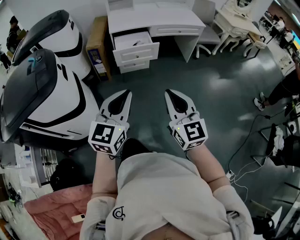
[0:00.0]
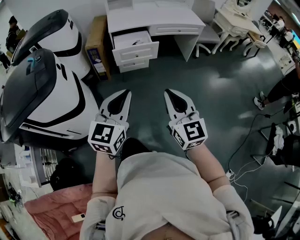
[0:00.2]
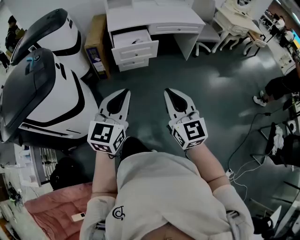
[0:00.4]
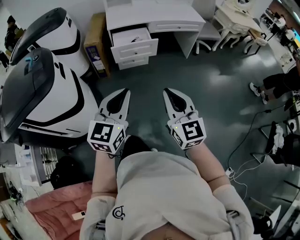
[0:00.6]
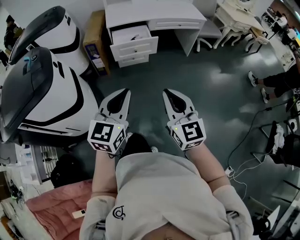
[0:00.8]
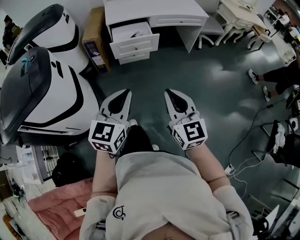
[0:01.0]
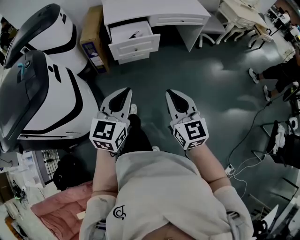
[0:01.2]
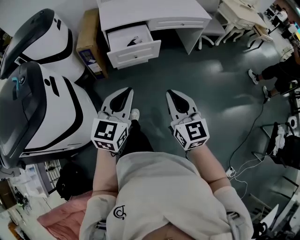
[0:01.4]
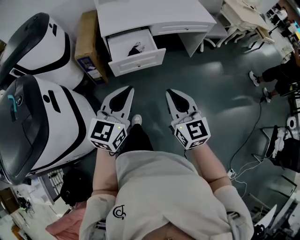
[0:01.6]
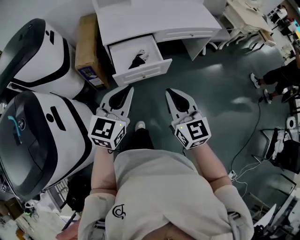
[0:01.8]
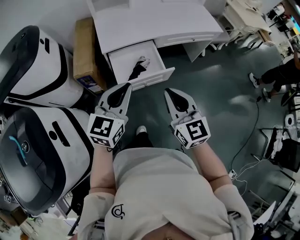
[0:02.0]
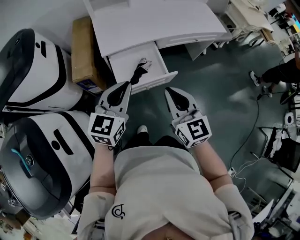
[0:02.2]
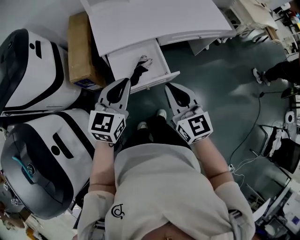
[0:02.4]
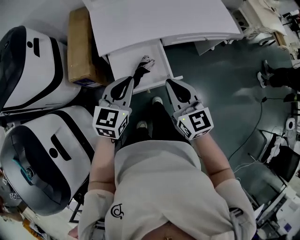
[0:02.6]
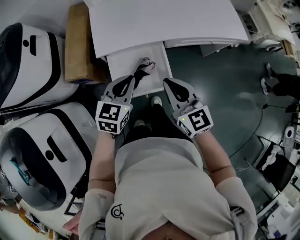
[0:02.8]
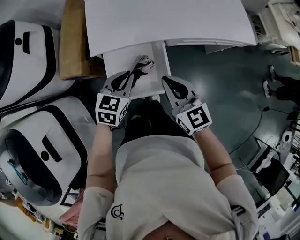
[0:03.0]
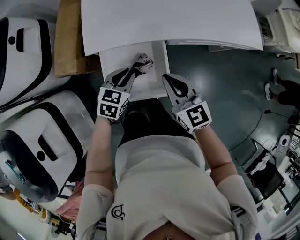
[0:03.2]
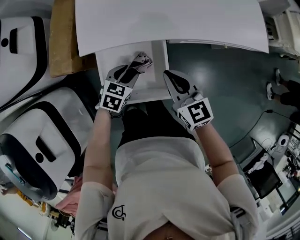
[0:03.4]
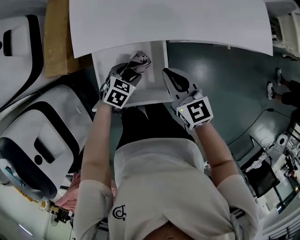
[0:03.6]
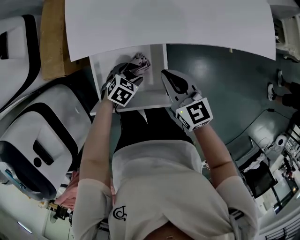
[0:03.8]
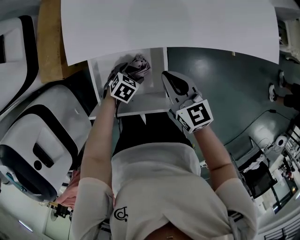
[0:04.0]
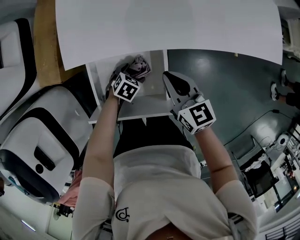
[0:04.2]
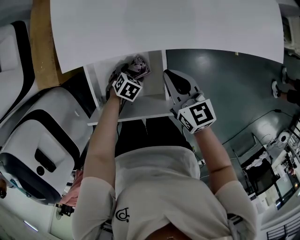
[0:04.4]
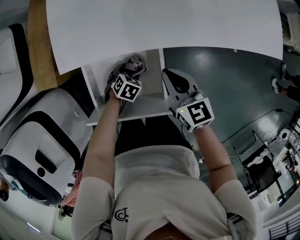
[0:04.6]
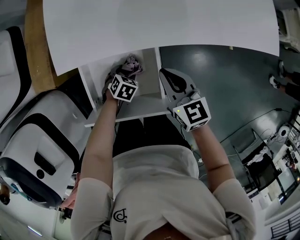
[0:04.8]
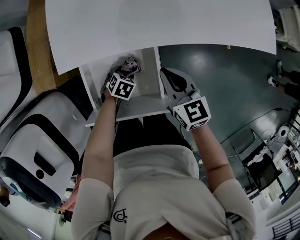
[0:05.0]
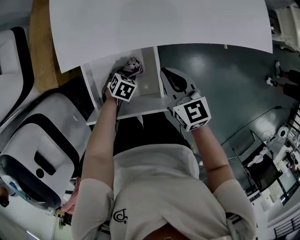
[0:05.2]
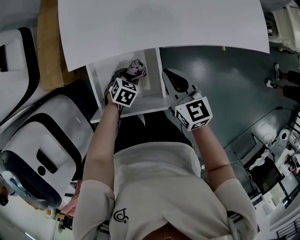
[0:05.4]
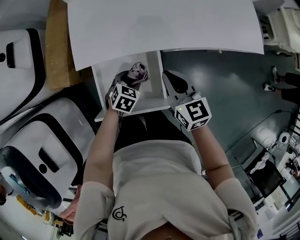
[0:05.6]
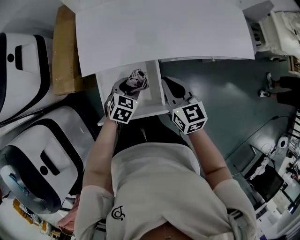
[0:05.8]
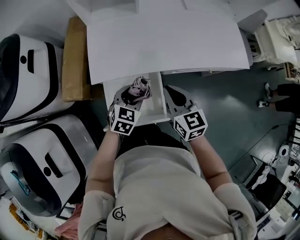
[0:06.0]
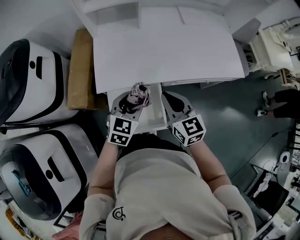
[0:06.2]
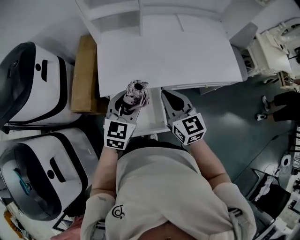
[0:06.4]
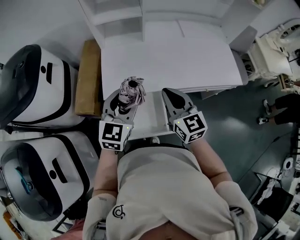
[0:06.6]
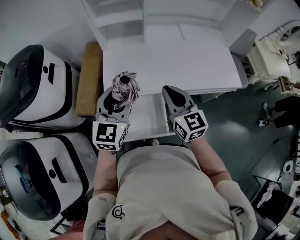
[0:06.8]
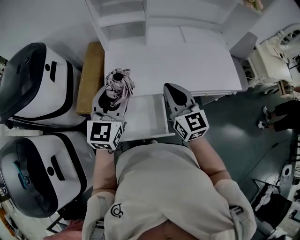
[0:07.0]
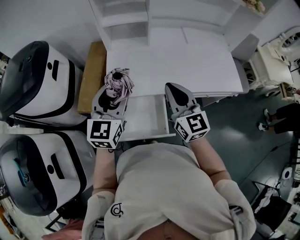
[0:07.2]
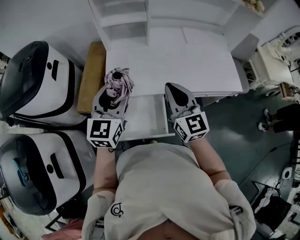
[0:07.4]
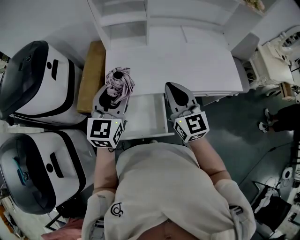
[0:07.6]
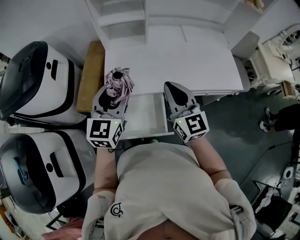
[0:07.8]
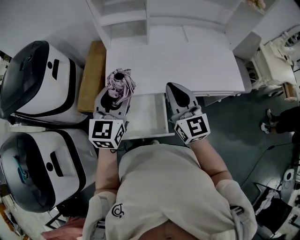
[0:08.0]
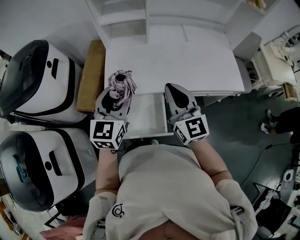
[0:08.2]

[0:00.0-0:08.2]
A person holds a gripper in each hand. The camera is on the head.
0:00.0 to 0:01.6: Both grippers move forward, roughly 25 cm.
0:01.6 to 0:03.2: Both grippers are carried forward, approximately 40 cm. The right gripper turns by roughly 20 degrees; the left gripper moves downward, roughly 25 cm, and points its fingers approximately 40 degrees further downward.
0:03.2 to 0:05.0: The left gripper heads downward, covering about 20 cm, tilts its fingers approximately 30 degrees downward, and opens, then closes again; the right gripper moves downward, about 10 cm.
0:05.0 to 0:06.6: The right gripper travels upward by about 25 cm, and swivels approximately 20 degrees; the left gripper goes about 50 cm upward, and tilts its fingers about 60 degrees upward.
0:06.6 to 0:08.2: The right gripper goes roughly 5 cm upward.

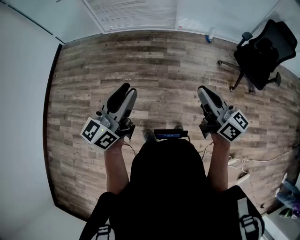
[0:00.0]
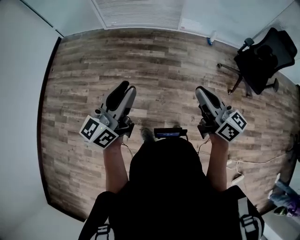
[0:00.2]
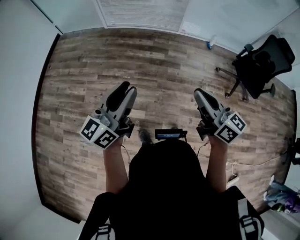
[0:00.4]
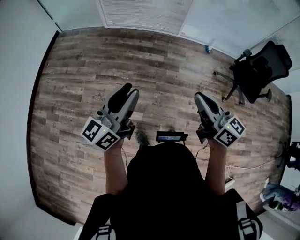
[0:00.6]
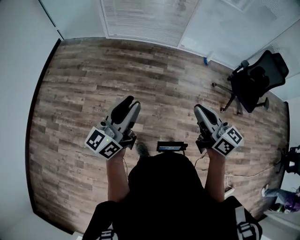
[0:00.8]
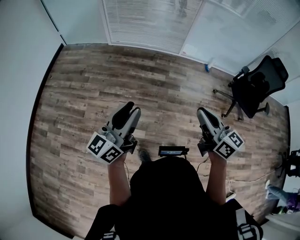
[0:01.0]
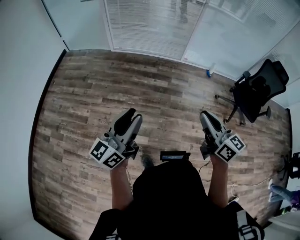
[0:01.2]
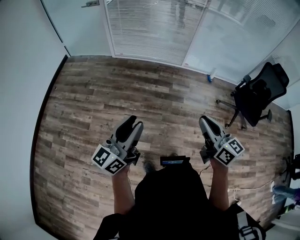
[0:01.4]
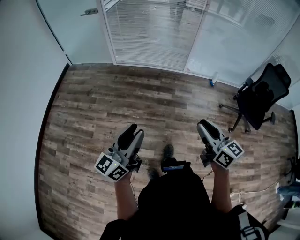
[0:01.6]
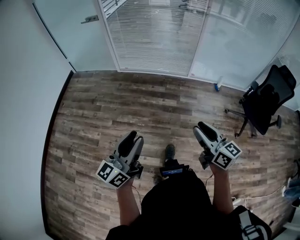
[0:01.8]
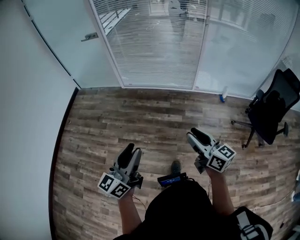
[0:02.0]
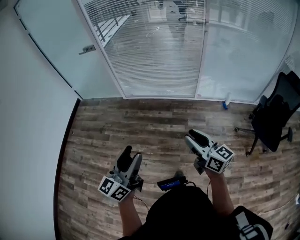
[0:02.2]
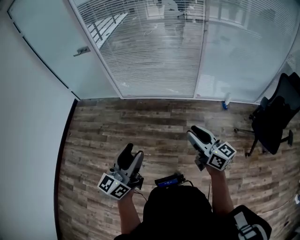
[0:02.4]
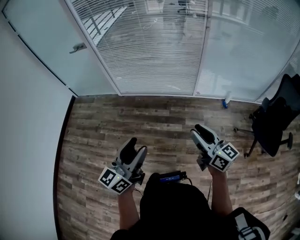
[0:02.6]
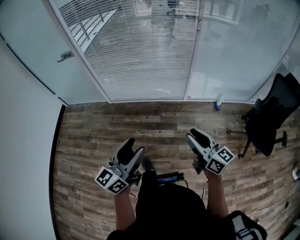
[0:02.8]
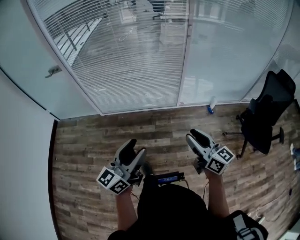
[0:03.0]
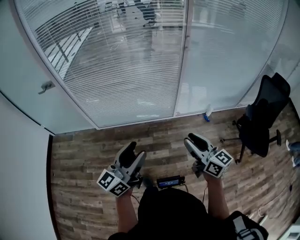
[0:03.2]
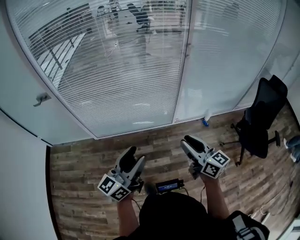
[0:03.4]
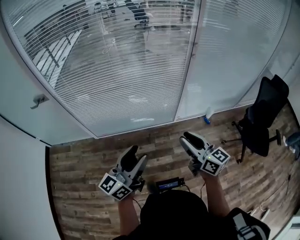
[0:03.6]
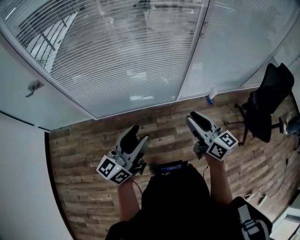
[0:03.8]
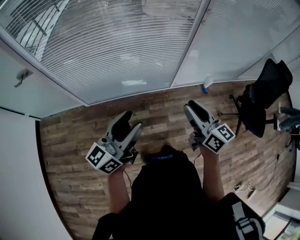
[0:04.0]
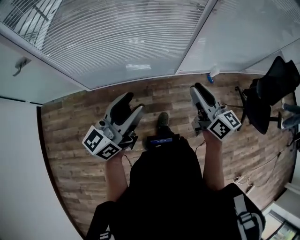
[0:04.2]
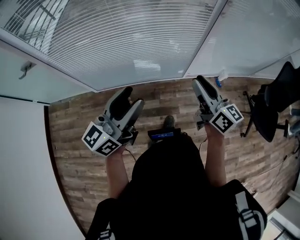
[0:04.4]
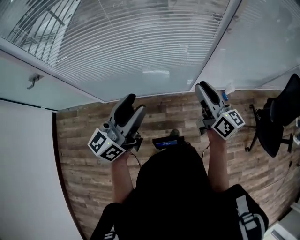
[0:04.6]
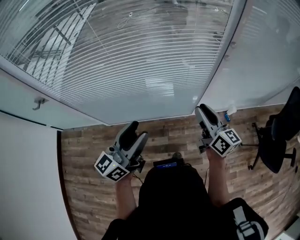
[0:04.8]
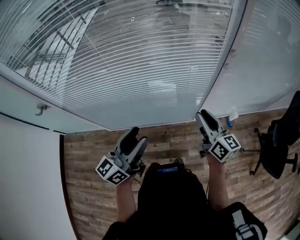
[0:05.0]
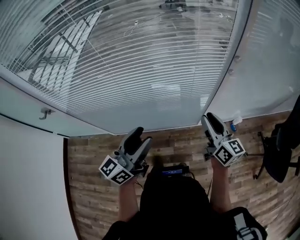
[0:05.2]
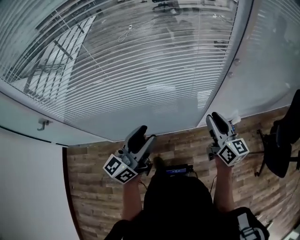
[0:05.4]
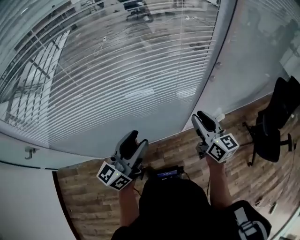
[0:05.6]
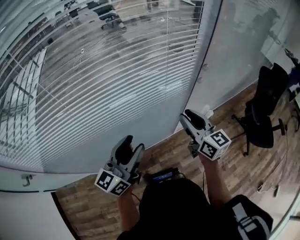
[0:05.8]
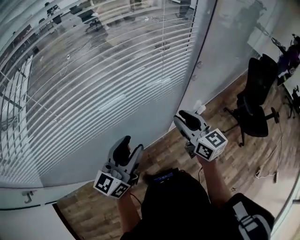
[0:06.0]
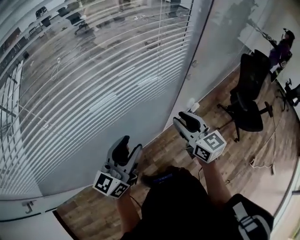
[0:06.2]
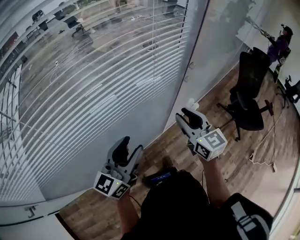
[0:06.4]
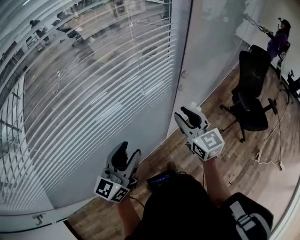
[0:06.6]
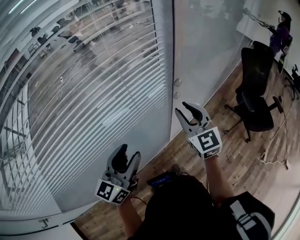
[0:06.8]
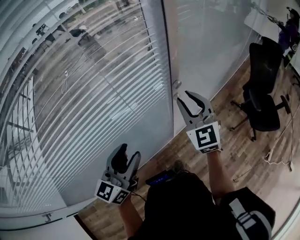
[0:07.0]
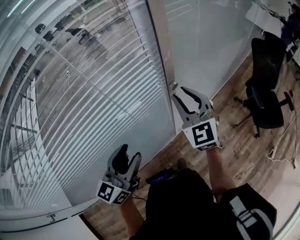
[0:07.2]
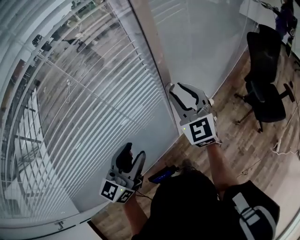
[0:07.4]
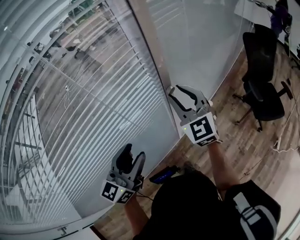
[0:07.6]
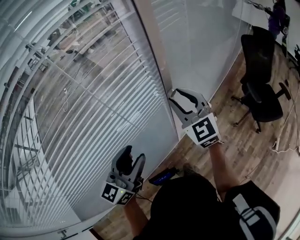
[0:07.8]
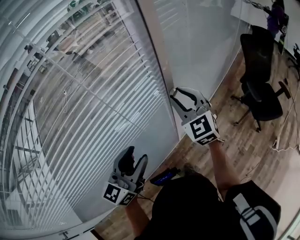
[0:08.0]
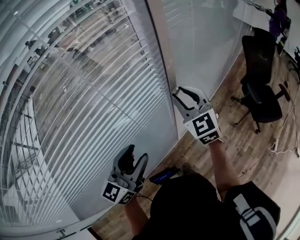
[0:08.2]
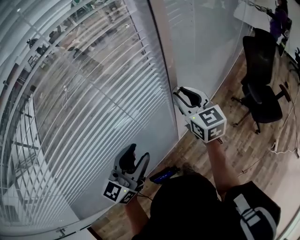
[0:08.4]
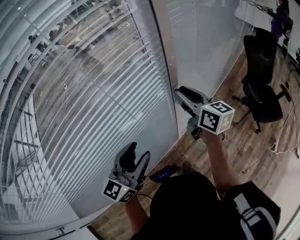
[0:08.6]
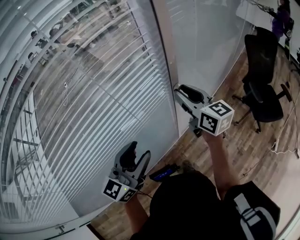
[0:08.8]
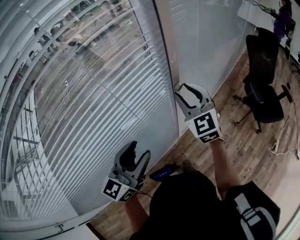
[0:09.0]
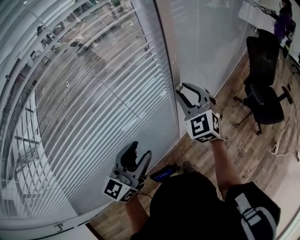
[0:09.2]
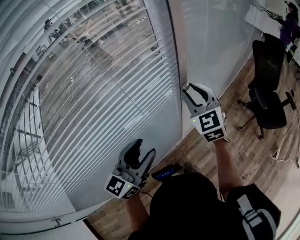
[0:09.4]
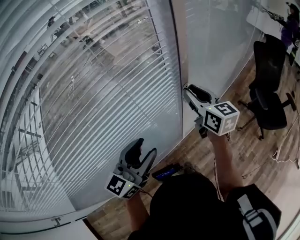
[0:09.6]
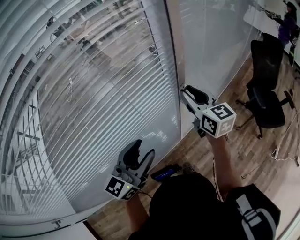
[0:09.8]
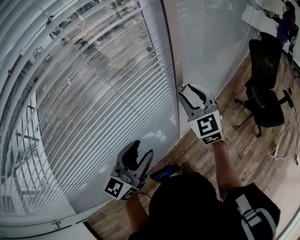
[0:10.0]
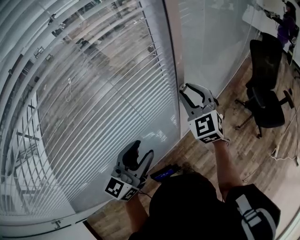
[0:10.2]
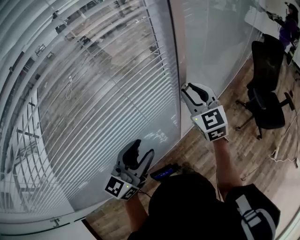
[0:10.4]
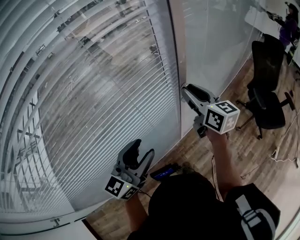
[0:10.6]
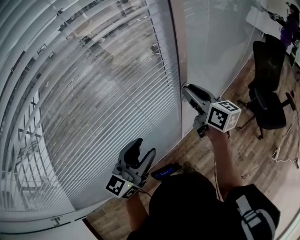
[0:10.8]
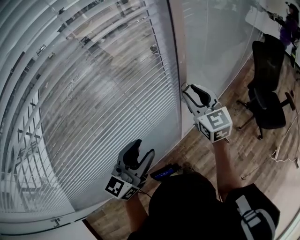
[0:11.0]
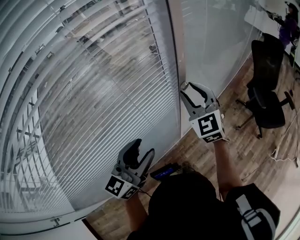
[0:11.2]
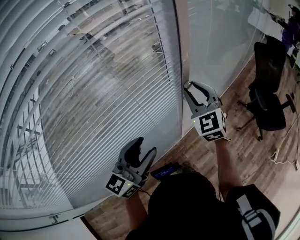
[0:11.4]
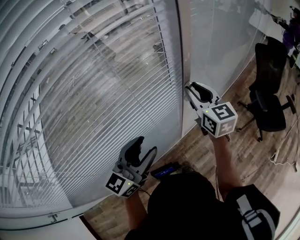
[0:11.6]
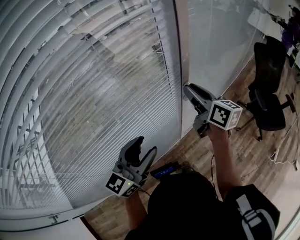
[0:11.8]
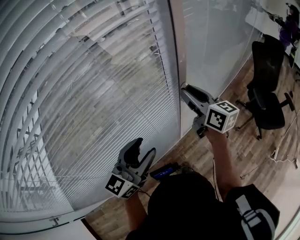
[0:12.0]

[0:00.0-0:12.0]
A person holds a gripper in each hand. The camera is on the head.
0:00.0 to 0:01.6: The left gripper heads to the left, covering roughly 15 cm, while the right gripper travels to the left and forward by some 15 cm.
0:01.6 to 0:03.0: Both grippers are carried forward, some 40 cm. The left gripper opens its fingers.
0:03.0 to 0:04.4: Both grippers travel together forward, approximately 30 cm.
0:04.4 to 0:06.0: The two grippers go roughly 25 cm forward. The right gripper changes its angle by roughly 30 degrees.
0:06.0 to 0:07.6: The two grippers go about 15 cm forward and to the right. The right gripper turns by roughly 40 degrees.
0:10.4 to 0:12.0: The right gripper swivels approximately 40 degrees.

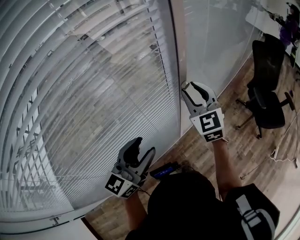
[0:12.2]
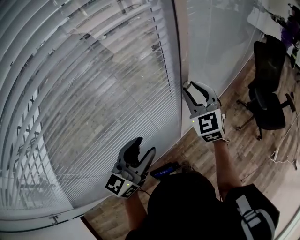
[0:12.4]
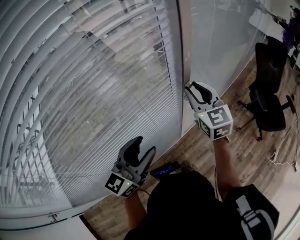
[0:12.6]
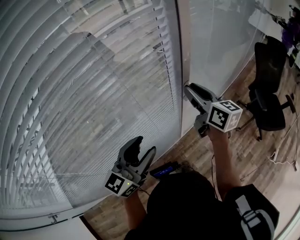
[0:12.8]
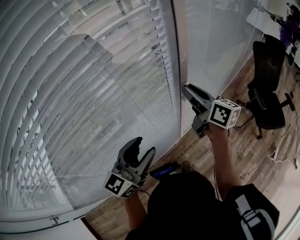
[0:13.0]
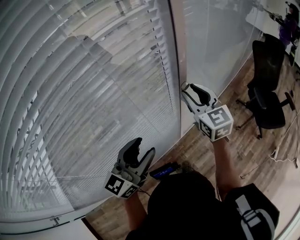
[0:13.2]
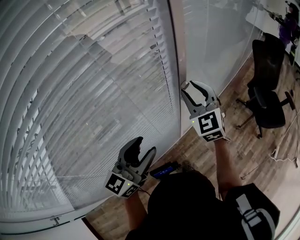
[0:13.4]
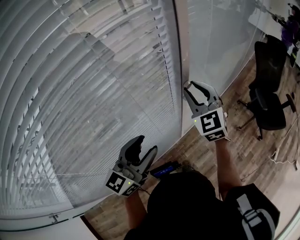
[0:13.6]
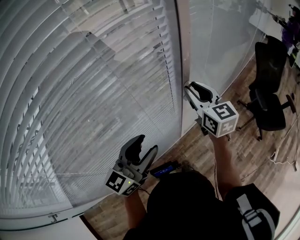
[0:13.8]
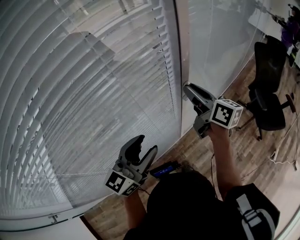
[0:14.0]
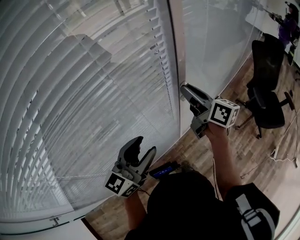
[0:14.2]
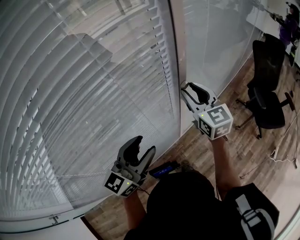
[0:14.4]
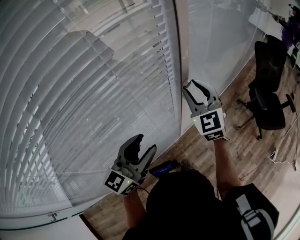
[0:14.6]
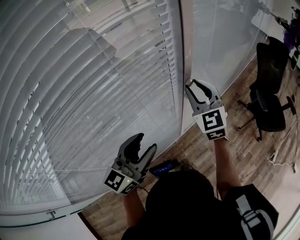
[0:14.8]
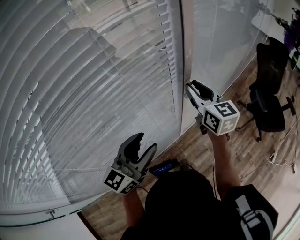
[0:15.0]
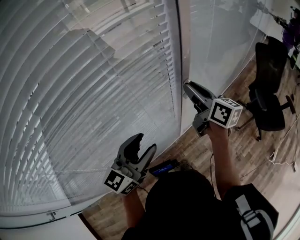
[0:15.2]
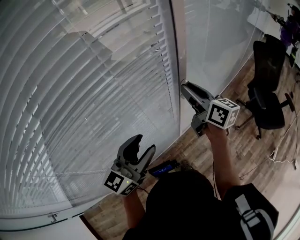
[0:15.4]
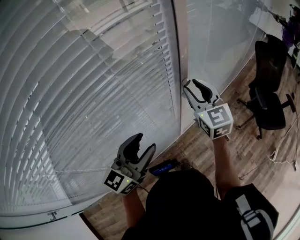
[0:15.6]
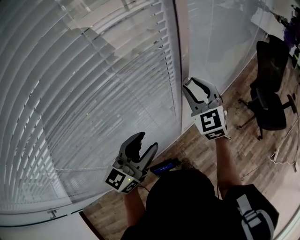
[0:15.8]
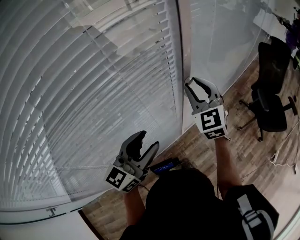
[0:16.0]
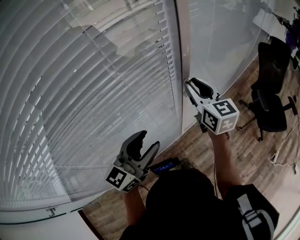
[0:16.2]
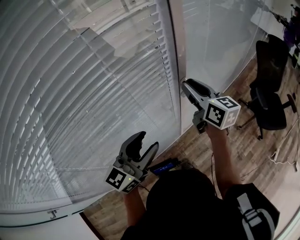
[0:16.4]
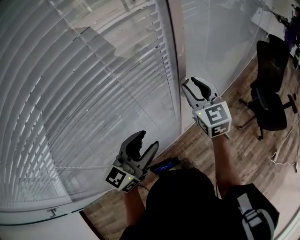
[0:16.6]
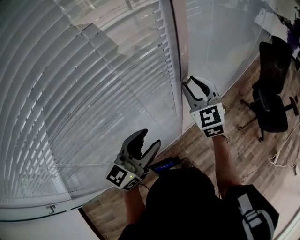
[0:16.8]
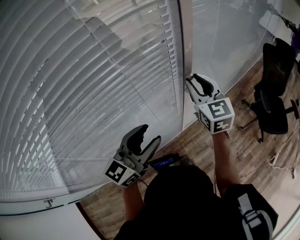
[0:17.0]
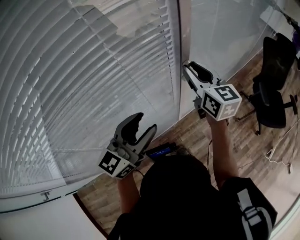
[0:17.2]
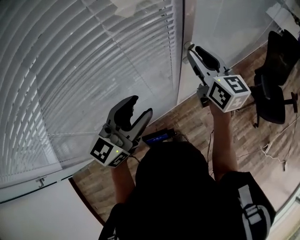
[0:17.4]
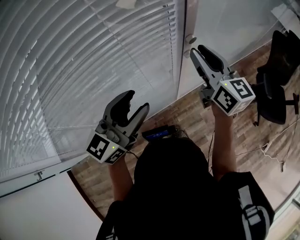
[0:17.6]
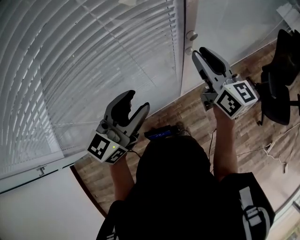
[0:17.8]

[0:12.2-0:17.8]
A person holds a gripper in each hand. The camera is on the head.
0:13.6 to 0:15.0: The right gripper rotates some 40 degrees.
